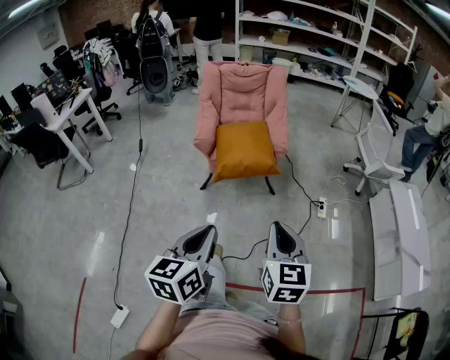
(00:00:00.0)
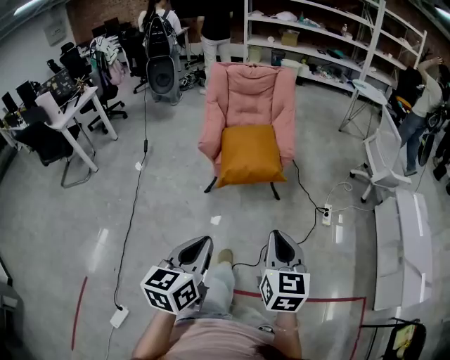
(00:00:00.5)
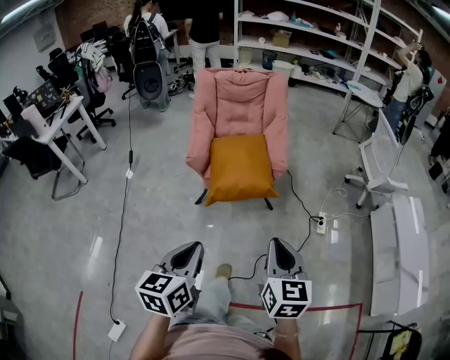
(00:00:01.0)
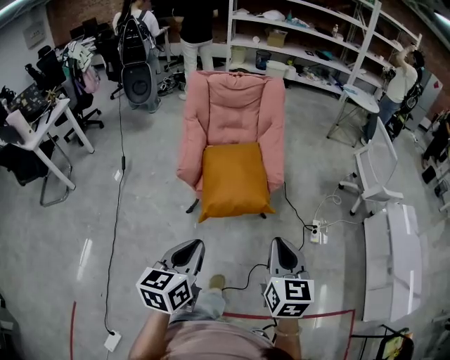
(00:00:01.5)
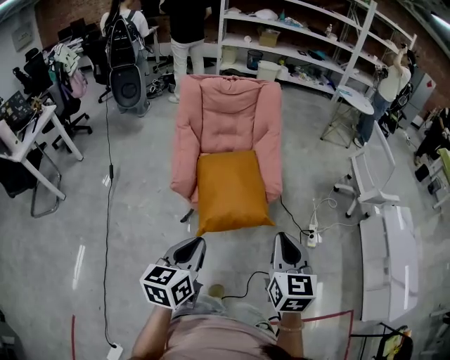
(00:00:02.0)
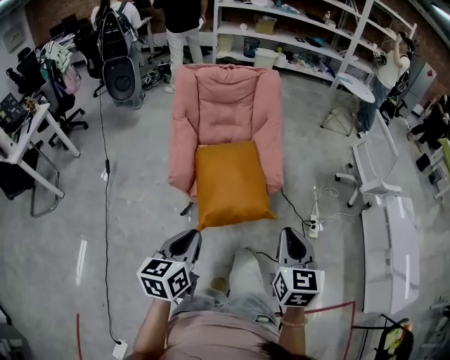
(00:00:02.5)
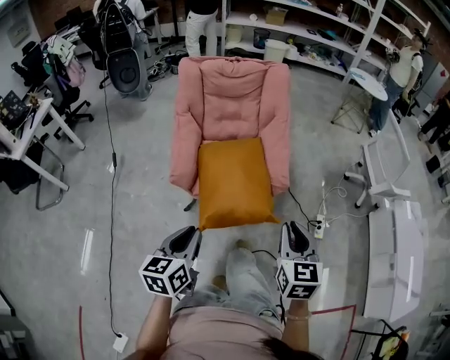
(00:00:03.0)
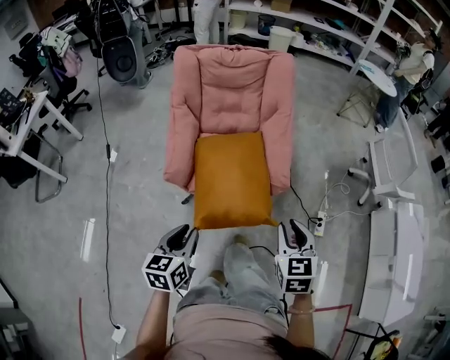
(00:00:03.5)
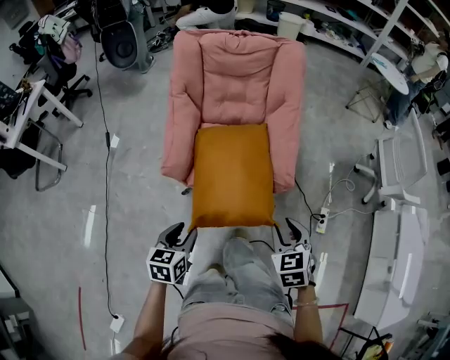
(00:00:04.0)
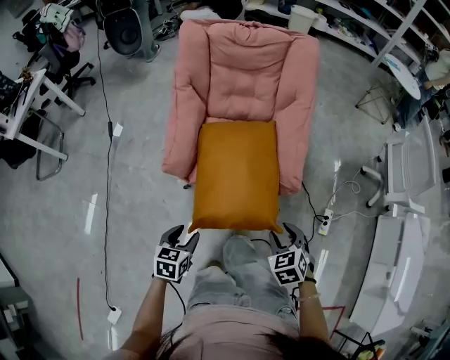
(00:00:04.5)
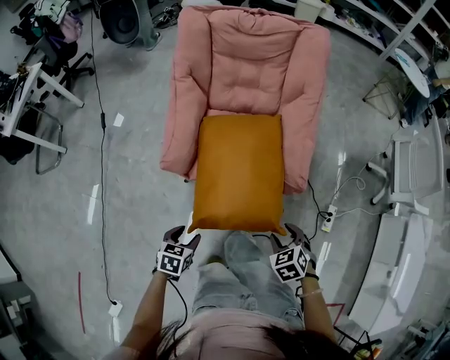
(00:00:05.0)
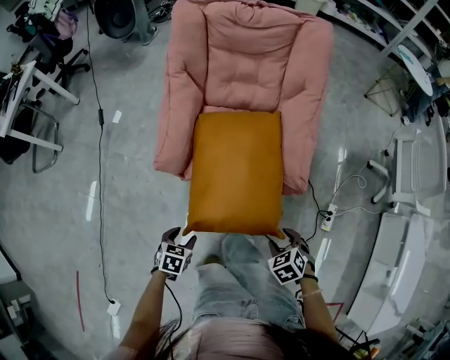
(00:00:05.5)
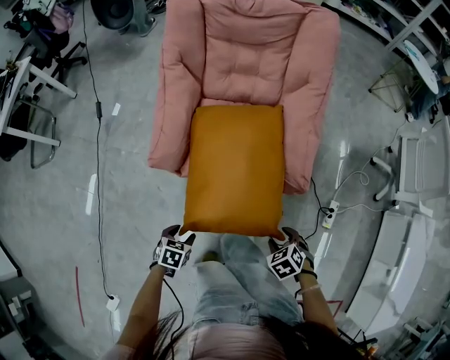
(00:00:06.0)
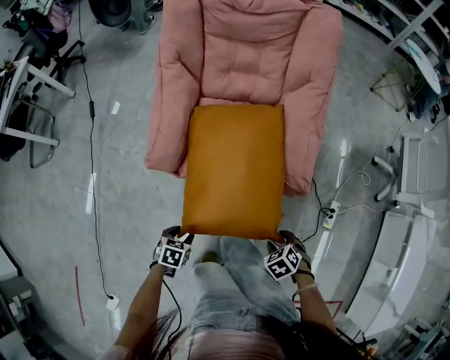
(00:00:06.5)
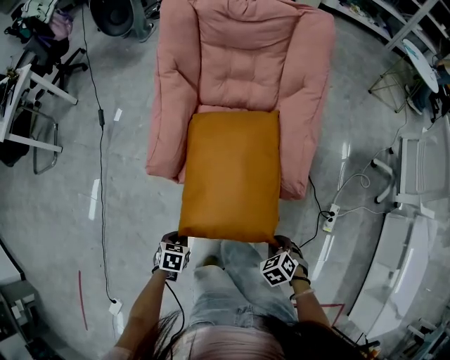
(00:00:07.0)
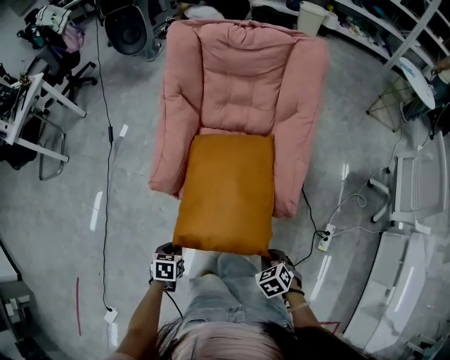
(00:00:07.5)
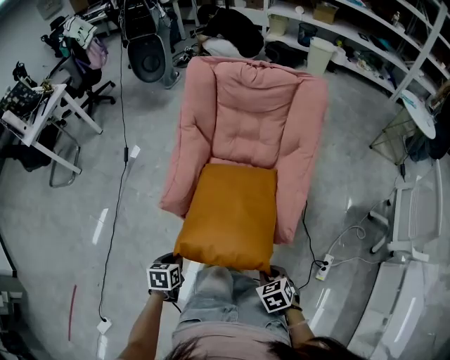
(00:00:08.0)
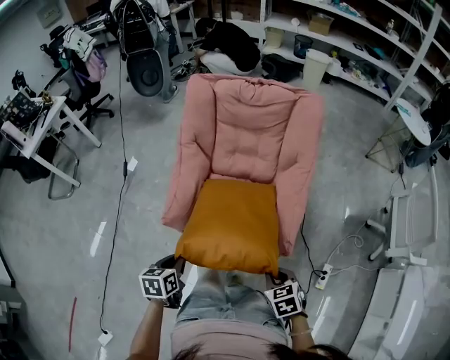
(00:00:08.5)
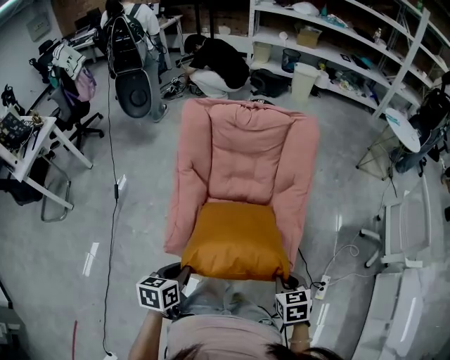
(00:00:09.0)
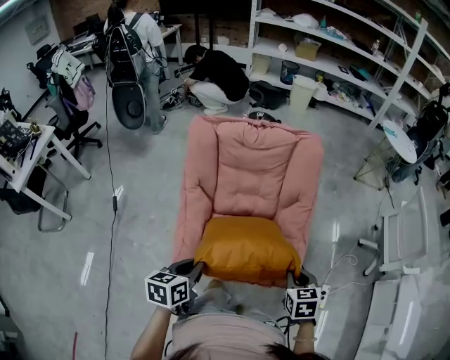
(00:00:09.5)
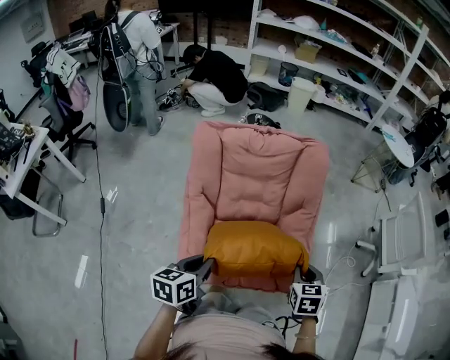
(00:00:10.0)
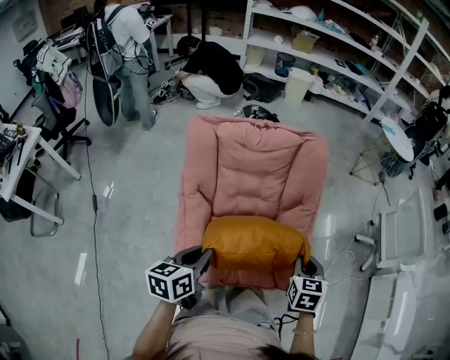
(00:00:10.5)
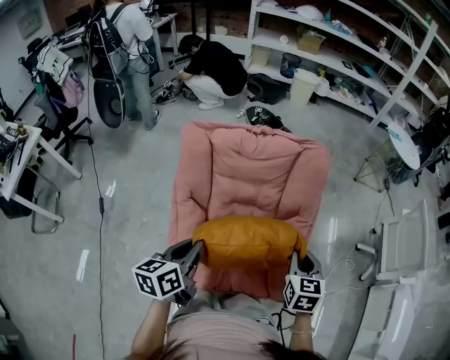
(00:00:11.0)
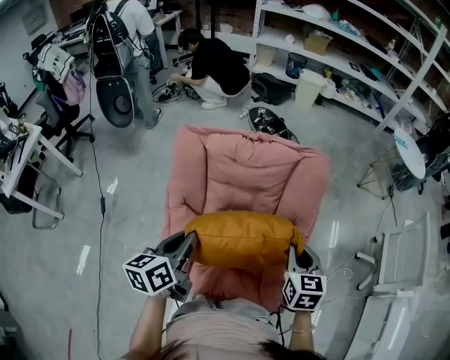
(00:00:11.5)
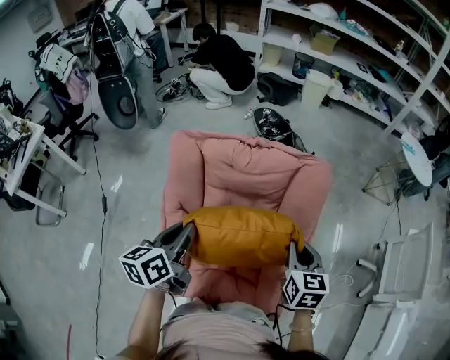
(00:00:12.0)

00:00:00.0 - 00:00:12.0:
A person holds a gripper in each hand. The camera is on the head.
00:00:00.0 - 00:00:02.0: Both grippers travel together forward, about 30 cm.
00:00:02.0 - 00:00:04.0: The two grippers go about 25 cm downward and forward. The right gripper turns by roughly 30 degrees, and opens, while the left gripper swivels roughly 20 degrees, and opens its fingers.
00:00:04.0 - 00:00:06.0: The grippers both shift downward by roughly 25 cm. The right gripper tilts its fingers some 30 degrees downward. Meanwhile the left gripper tips its fingers downward by about 30 degrees.
00:00:06.0 - 00:00:08.0: The grippers both shift upward by some 10 cm. The left gripper changes its angle by about 30 degrees, and closes, while the right gripper closes.
00:00:08.0 - 00:00:10.0: The left gripper moves about 35 cm, and turns by approximately 40 degrees. Meanwhile the right gripper shifts by some 30 cm, and changes its angle by about 40 degrees.
00:00:10.0 - 00:00:12.0: The two grippers go approximately 20 cm forward. The left gripper rotates roughly 20 degrees.

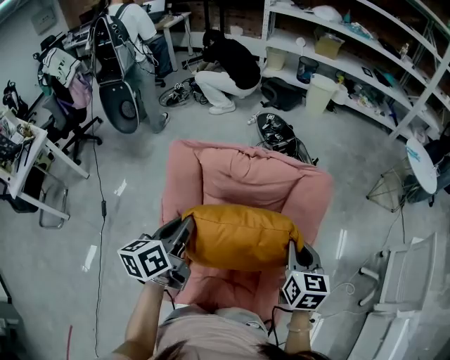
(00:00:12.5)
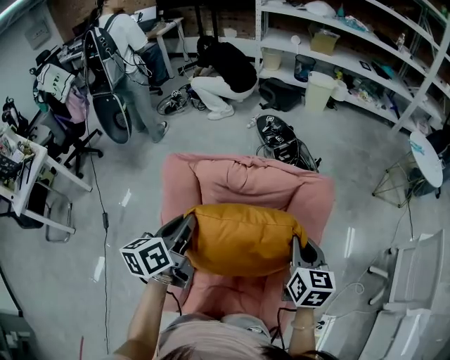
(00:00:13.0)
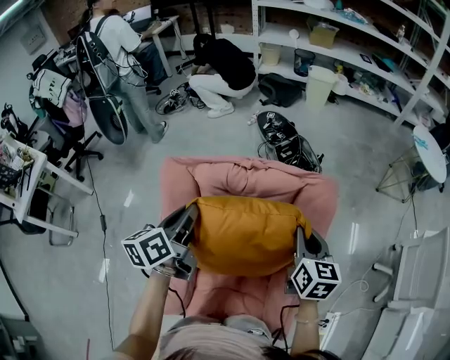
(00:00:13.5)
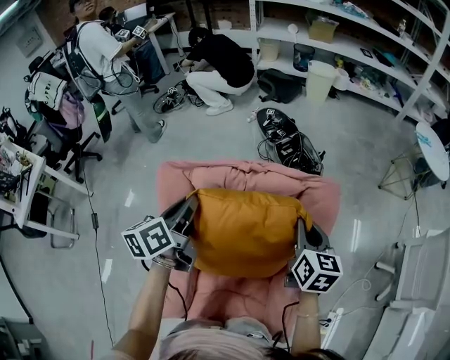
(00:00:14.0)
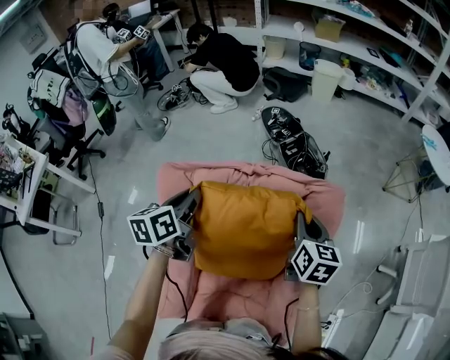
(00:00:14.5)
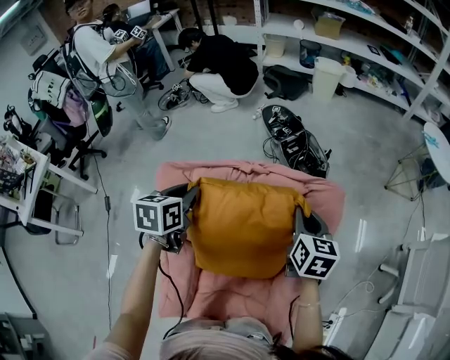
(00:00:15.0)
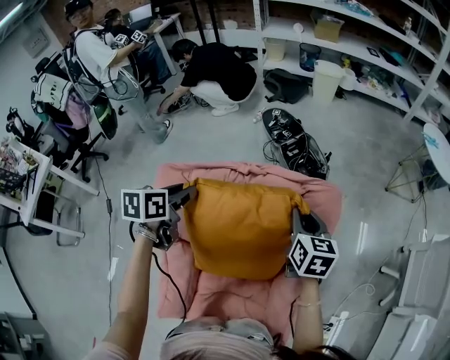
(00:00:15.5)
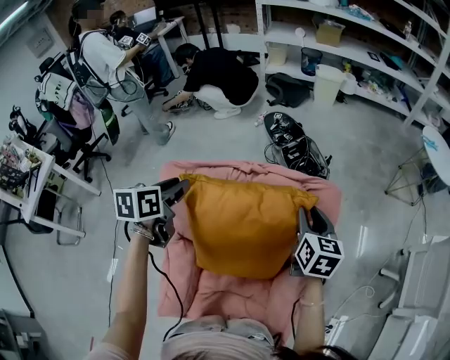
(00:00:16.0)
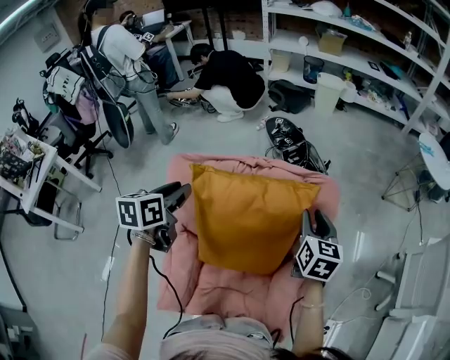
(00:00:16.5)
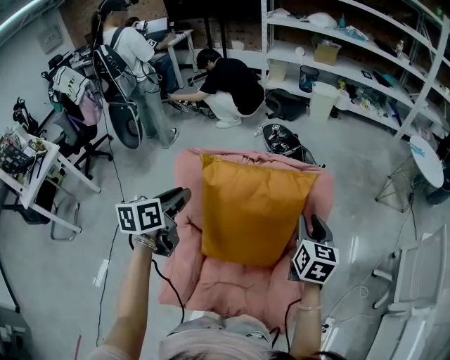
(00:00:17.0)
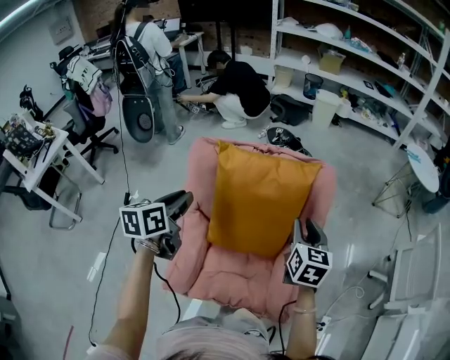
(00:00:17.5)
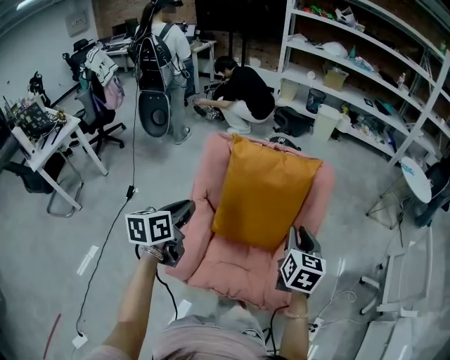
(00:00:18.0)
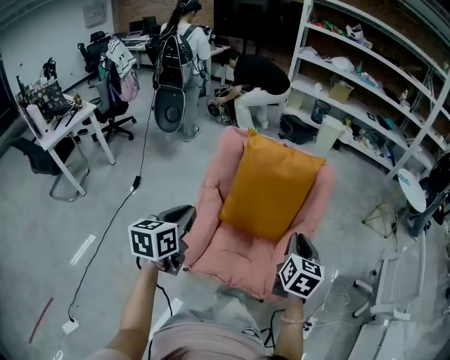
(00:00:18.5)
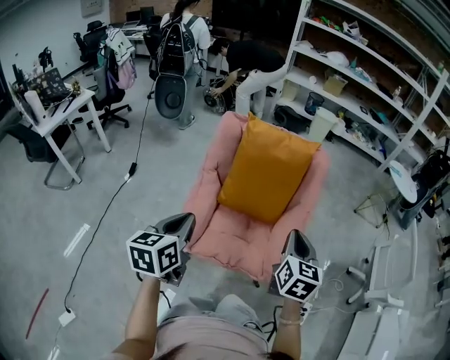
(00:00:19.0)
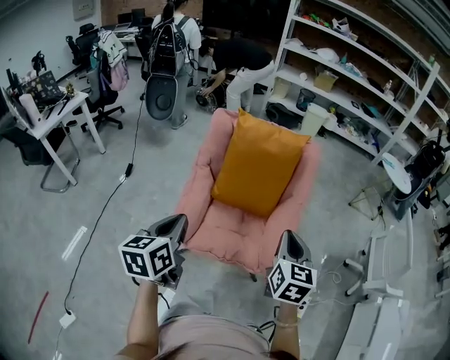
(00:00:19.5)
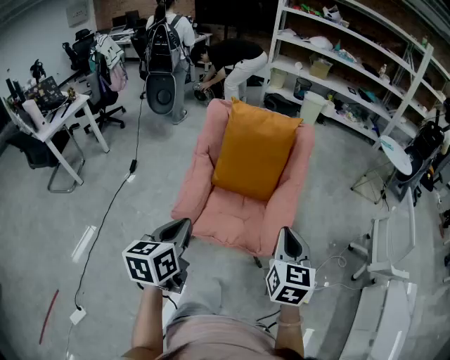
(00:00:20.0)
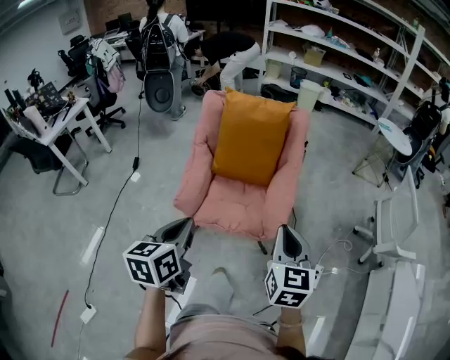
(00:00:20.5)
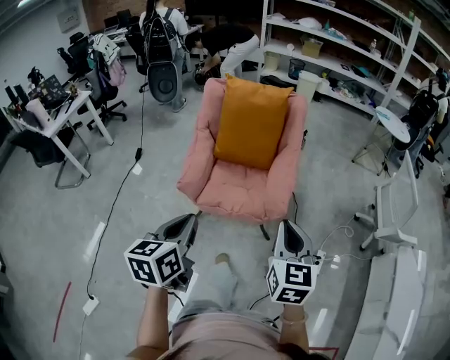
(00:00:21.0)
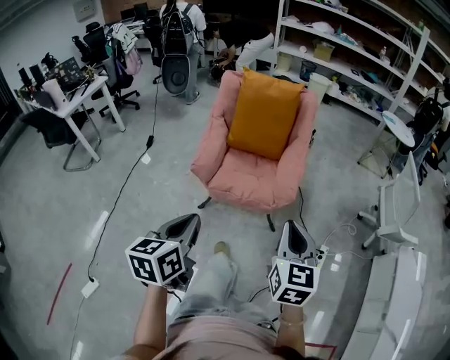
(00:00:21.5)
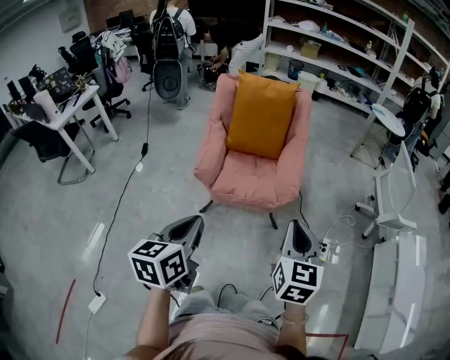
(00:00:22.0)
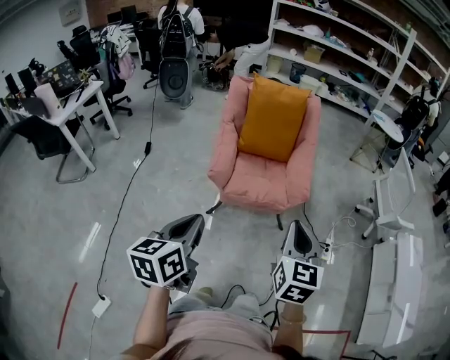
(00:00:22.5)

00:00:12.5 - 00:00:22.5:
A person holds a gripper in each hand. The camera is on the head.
00:00:12.5 - 00:00:14.5: The two grippers go about 20 cm forward.
00:00:14.5 - 00:00:16.5: The right gripper moves some 5 cm, and opens, while the left gripper travels backward by approximately 5 cm, and opens its fingers.
00:00:16.5 - 00:00:18.5: Both grippers move backward, about 40 cm. The left gripper closes.
00:00:18.5 - 00:00:20.5: The left gripper travels backward and to the right by some 30 cm; the right gripper moves backward, roughly 30 cm.
00:00:20.5 - 00:00:22.5: Both grippers move backward and to the left, some 25 cm.

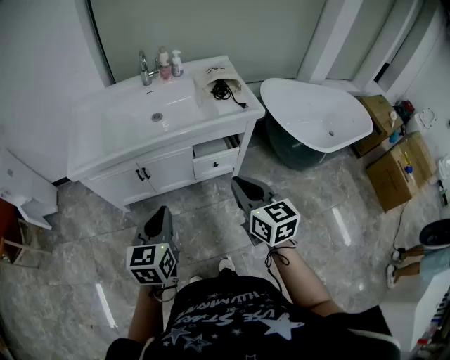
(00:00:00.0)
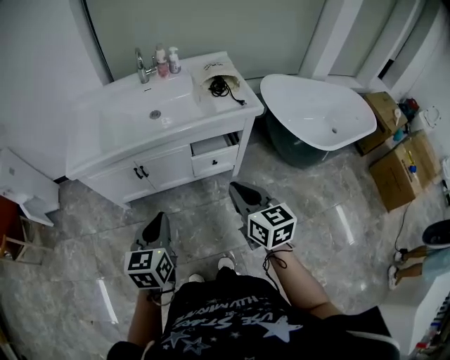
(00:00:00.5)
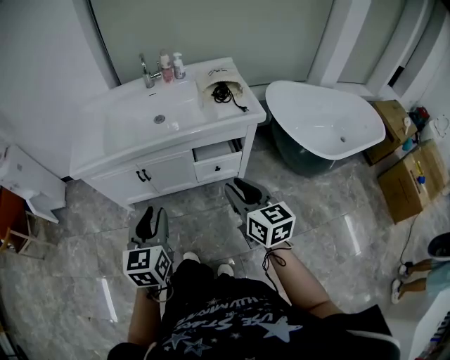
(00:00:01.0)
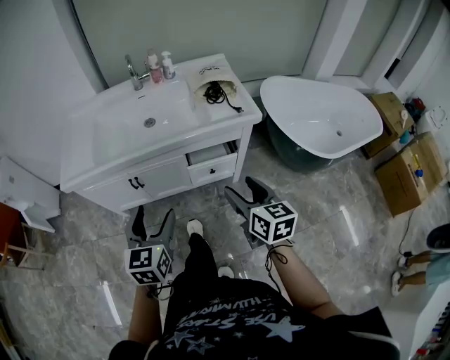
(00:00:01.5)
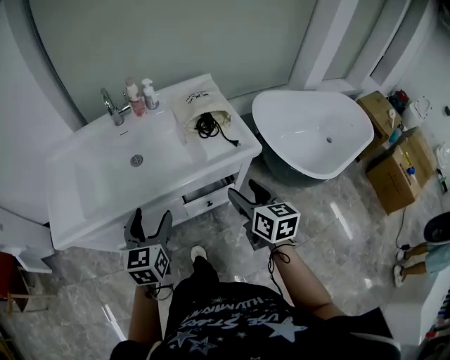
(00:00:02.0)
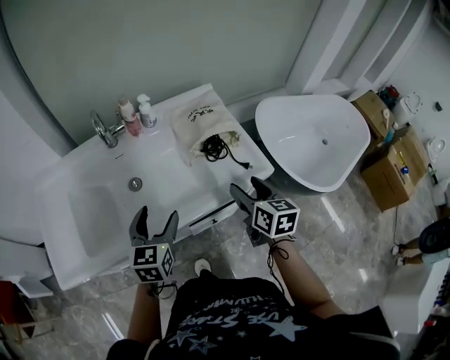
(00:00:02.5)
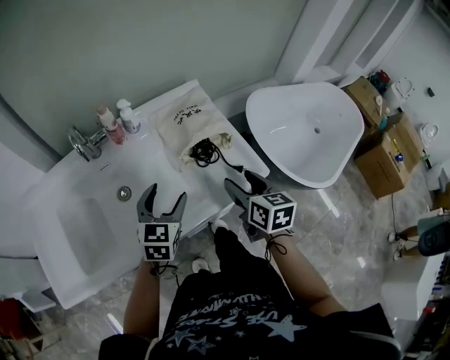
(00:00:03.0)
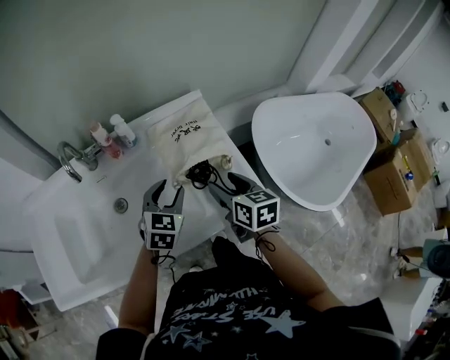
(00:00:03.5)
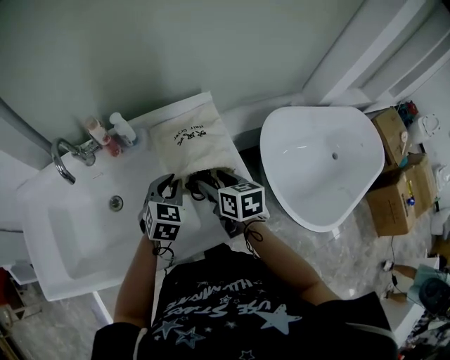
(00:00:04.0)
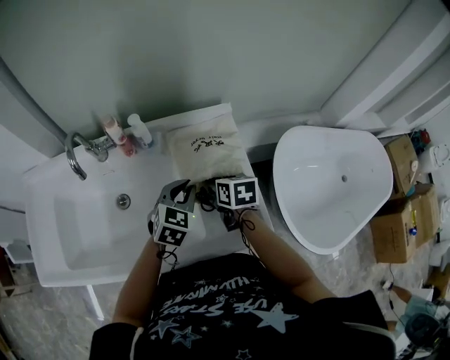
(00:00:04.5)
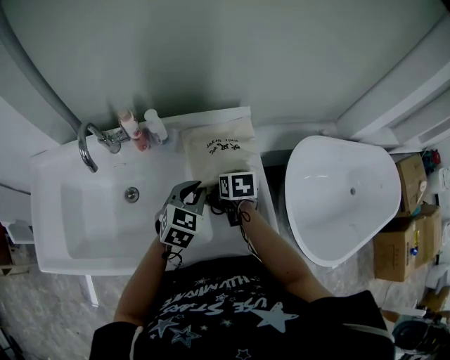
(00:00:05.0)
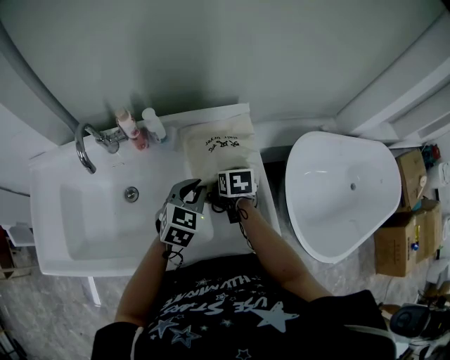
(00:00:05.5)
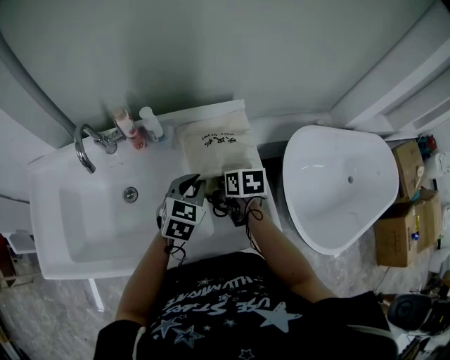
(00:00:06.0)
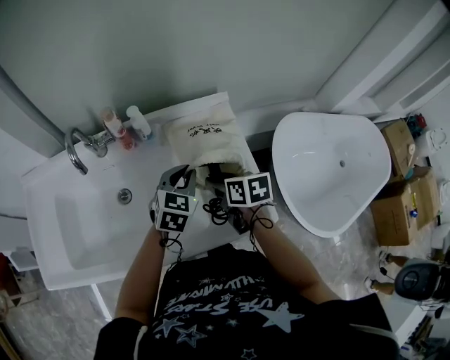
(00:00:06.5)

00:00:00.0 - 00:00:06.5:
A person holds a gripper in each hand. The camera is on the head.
00:00:00.0 - 00:00:02.0: The left gripper travels forward by about 25 cm, and opens. The right gripper heads forward and to the right, covering some 25 cm, and opens.
00:00:02.0 - 00:00:04.5: Both grippers are carried forward, roughly 40 cm. The left gripper rotates about 30 degrees, and closes its fingers. The right gripper rotates about 30 degrees.
00:00:04.5 - 00:00:06.5: The right gripper moves backward, some 5 cm.
